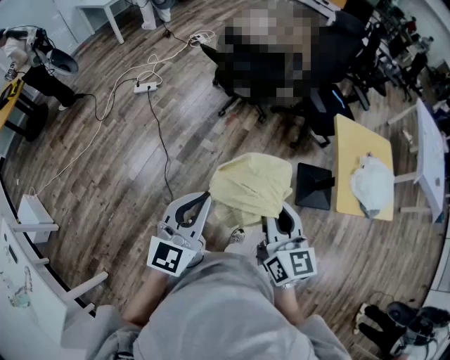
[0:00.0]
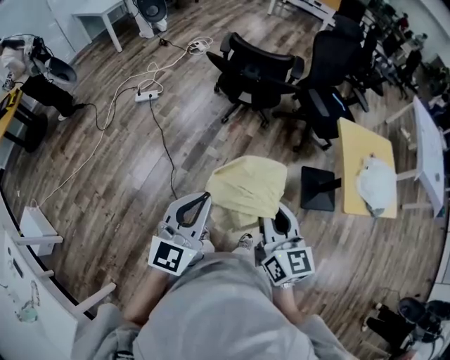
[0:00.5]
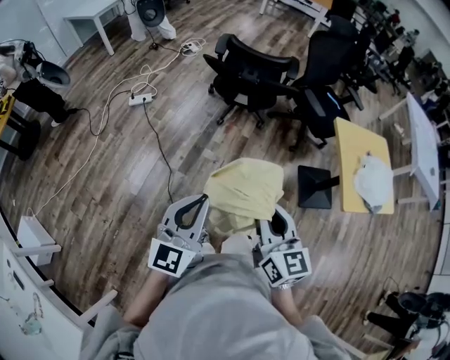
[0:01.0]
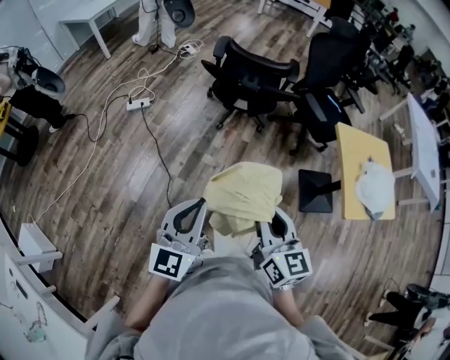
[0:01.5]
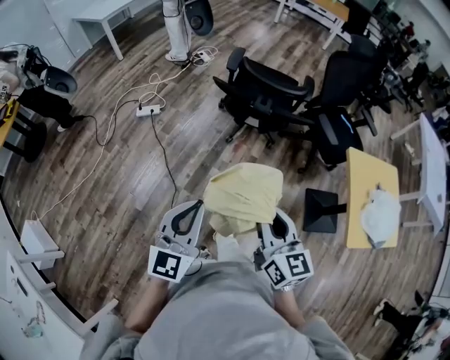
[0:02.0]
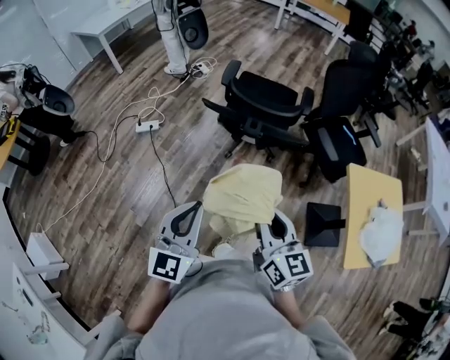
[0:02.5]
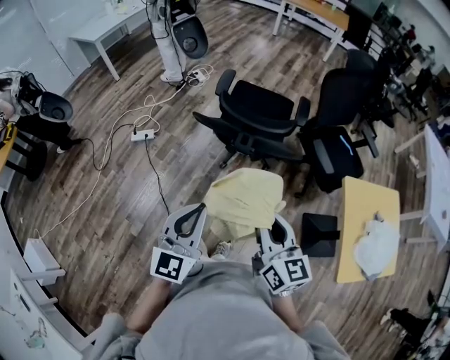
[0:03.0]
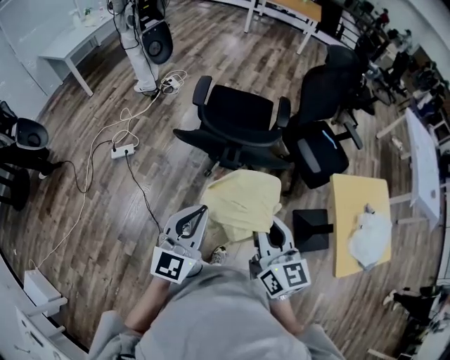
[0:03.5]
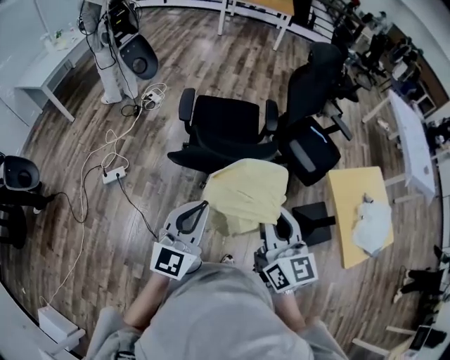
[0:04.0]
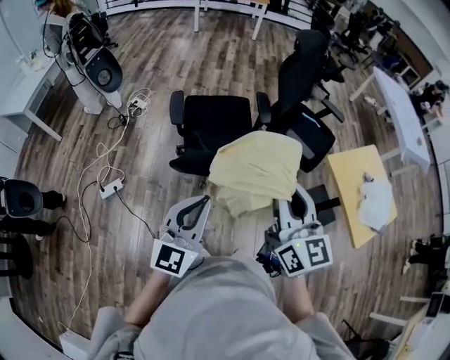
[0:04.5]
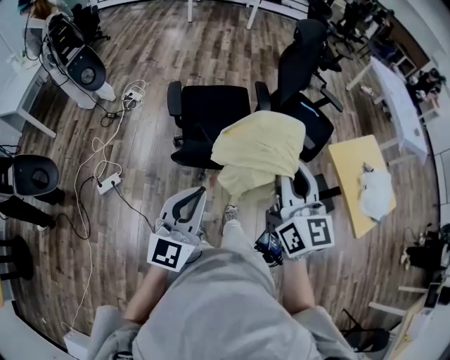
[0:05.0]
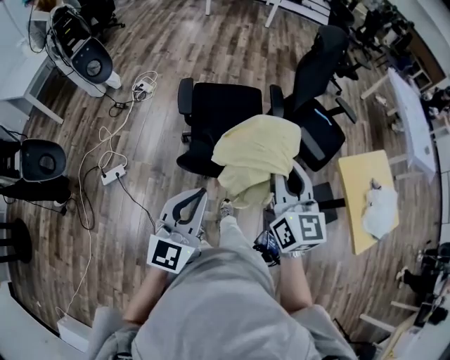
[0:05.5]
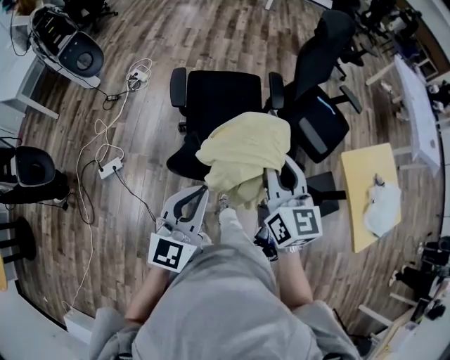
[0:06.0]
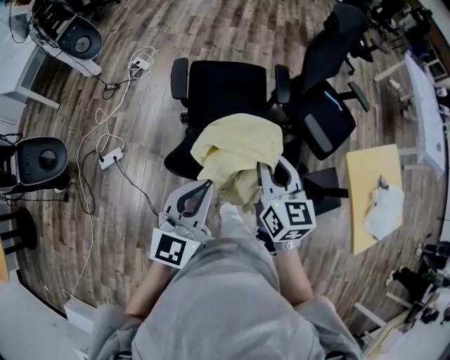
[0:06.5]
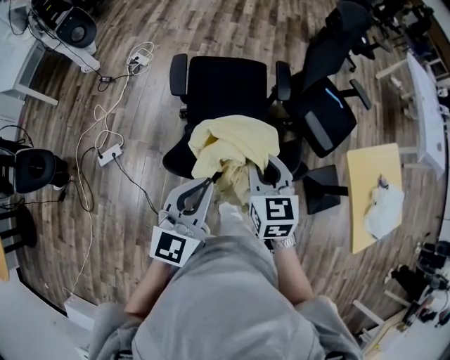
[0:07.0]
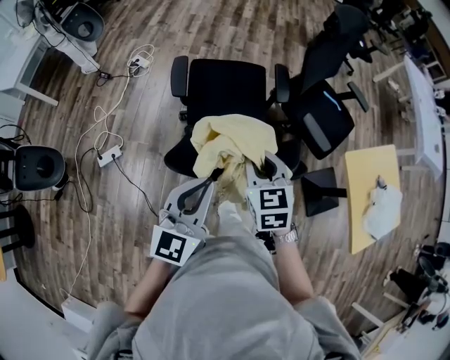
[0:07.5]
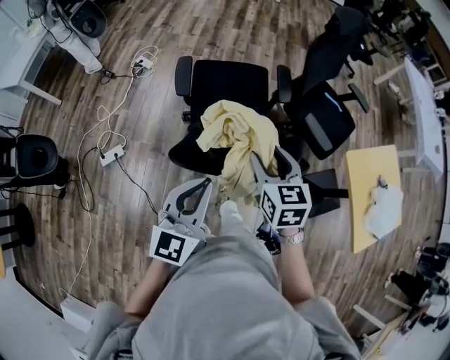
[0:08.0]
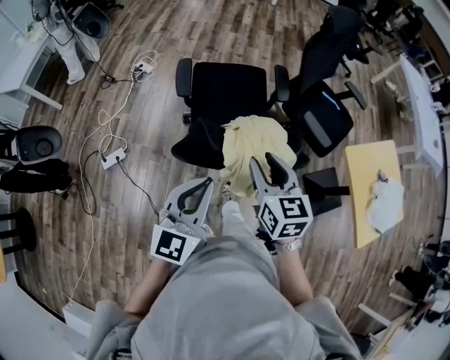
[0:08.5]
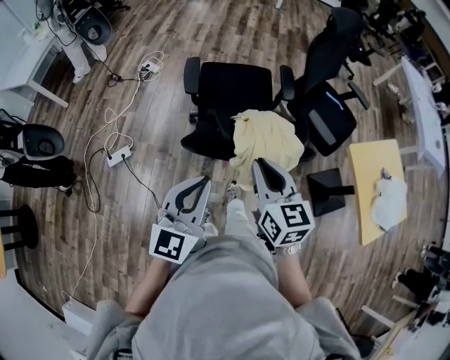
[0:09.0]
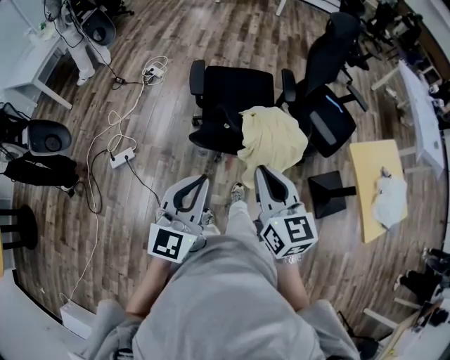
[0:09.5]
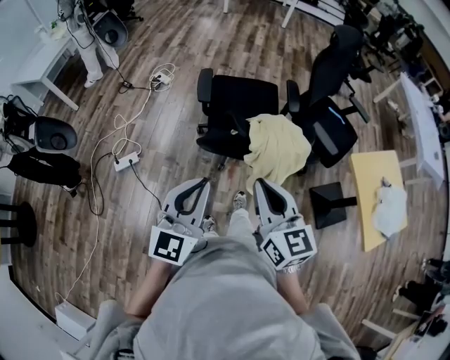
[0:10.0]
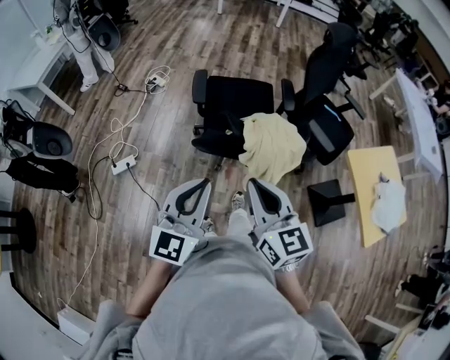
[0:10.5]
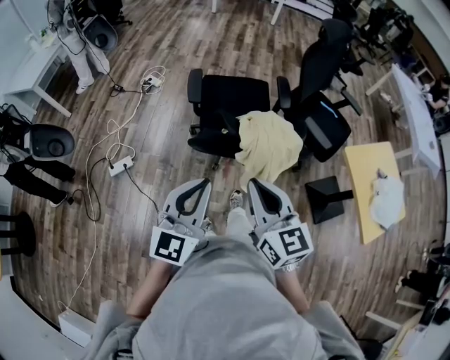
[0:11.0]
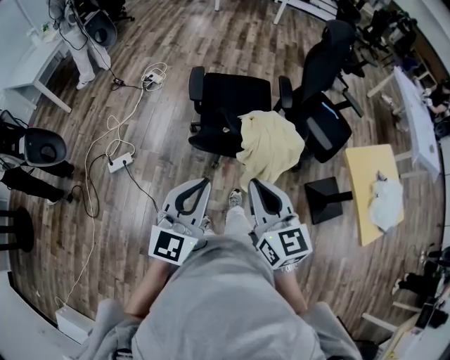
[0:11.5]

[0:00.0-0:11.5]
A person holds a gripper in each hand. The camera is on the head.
0:00.0 to 0:02.0: Both grippers travel together forward and to the left, about 20 cm.
0:02.0 to 0:04.0: Both grippers travel together forward, approximately 30 cm. The left gripper changes its angle by about 20 degrees.
0:04.0 to 0:06.0: The left gripper heads forward and to the left, covering roughly 15 cm, while the right gripper shifts about 20 cm forward.
0:06.0 to 0:07.5: The right gripper travels downward by approximately 10 cm, and changes its angle by about 30 degrees.
0:07.5 to 0:09.5: The right gripper is displaced backward and upward by roughly 20 cm, turns by approximately 20 degrees, and opens and closes again, while the left gripper shifts roughly 15 cm backward and to the left.
0:09.5 to 0:11.5: There are only small adjustments of the grippers.

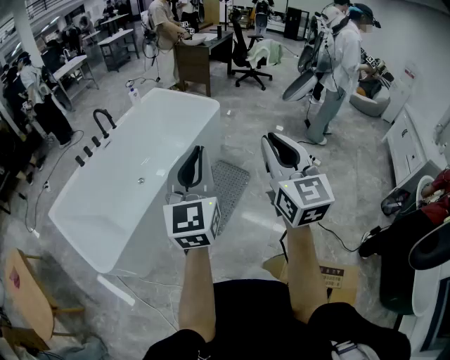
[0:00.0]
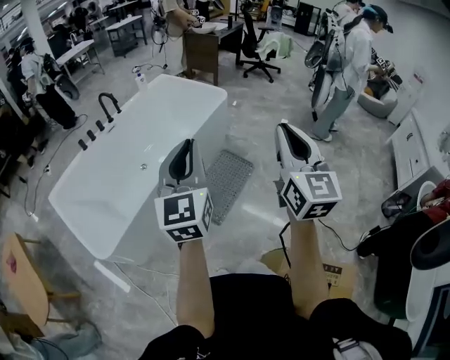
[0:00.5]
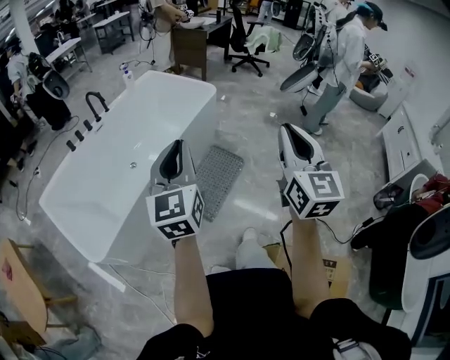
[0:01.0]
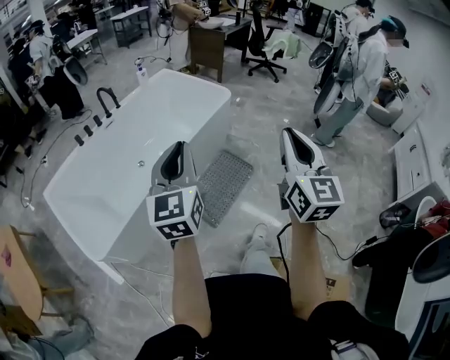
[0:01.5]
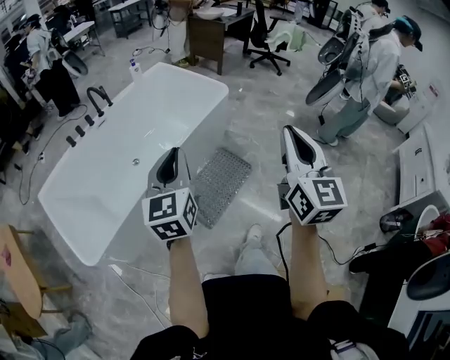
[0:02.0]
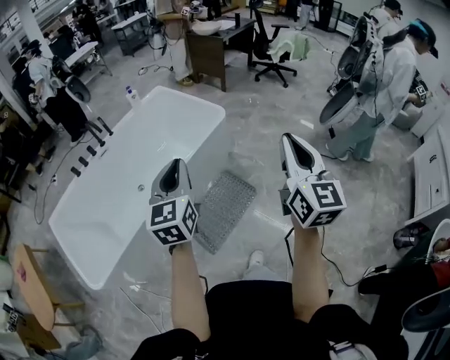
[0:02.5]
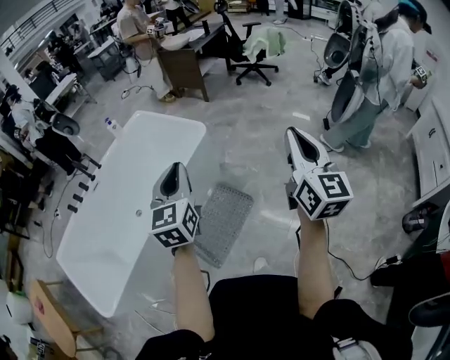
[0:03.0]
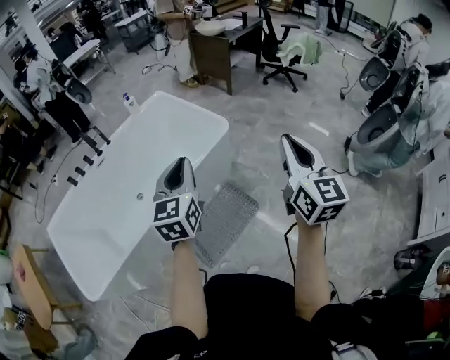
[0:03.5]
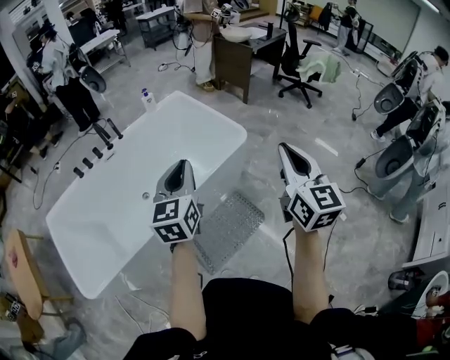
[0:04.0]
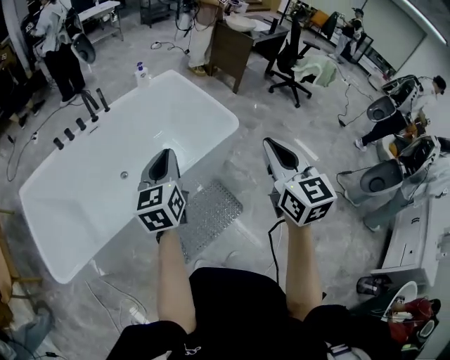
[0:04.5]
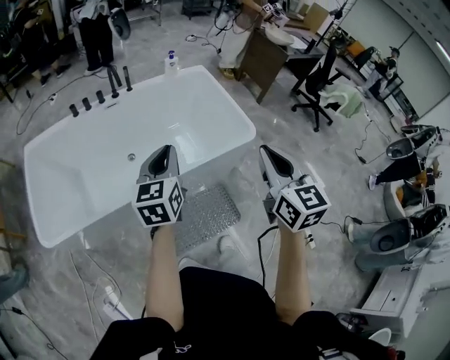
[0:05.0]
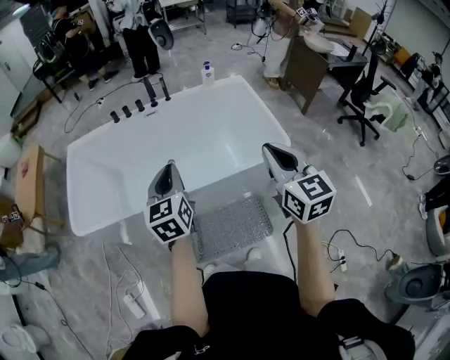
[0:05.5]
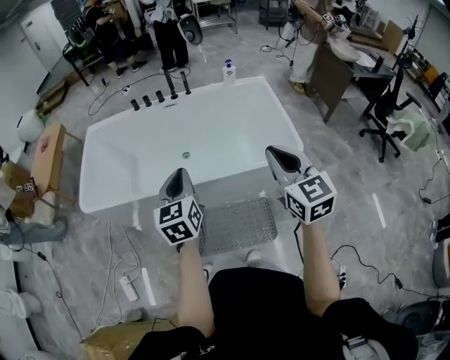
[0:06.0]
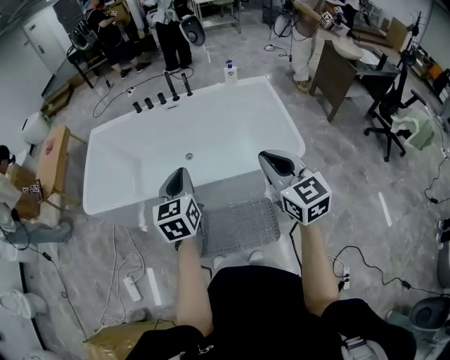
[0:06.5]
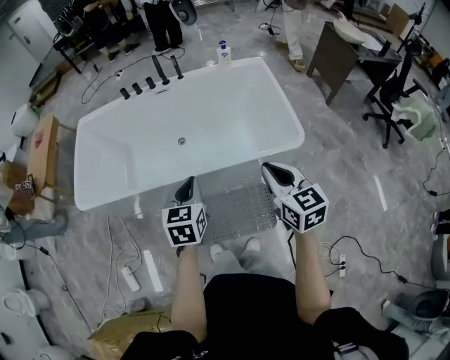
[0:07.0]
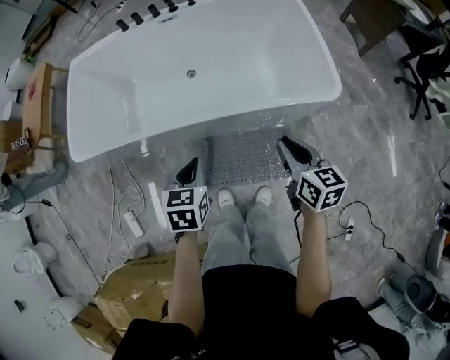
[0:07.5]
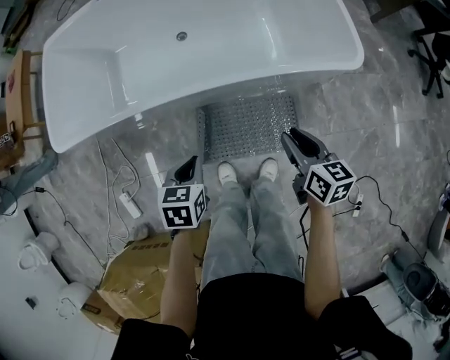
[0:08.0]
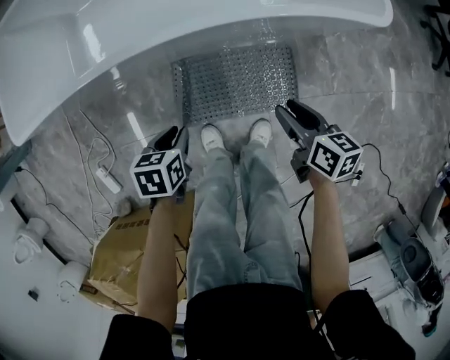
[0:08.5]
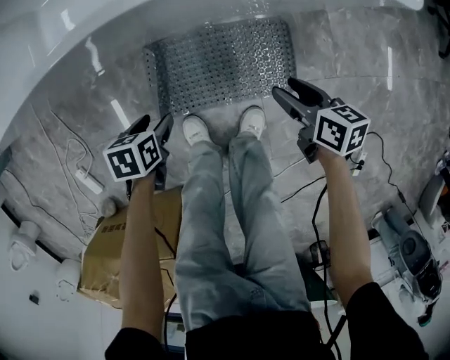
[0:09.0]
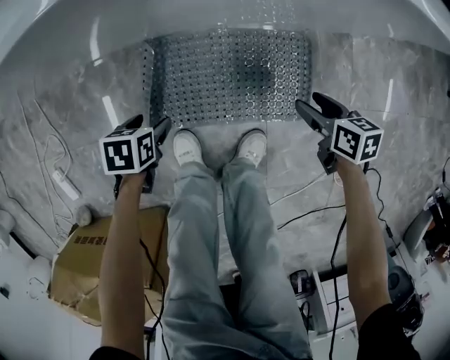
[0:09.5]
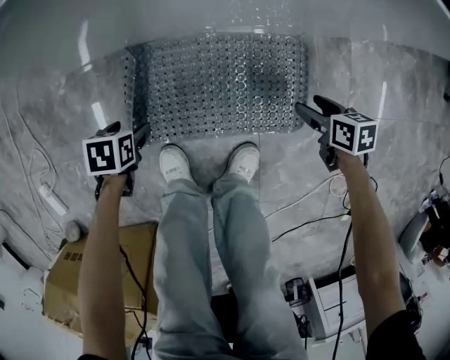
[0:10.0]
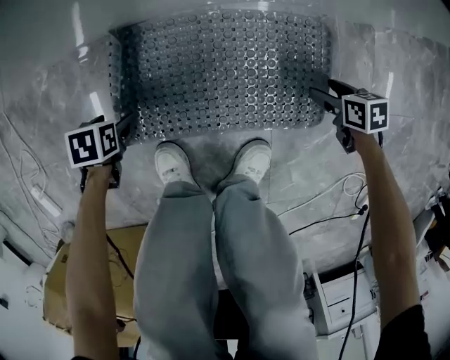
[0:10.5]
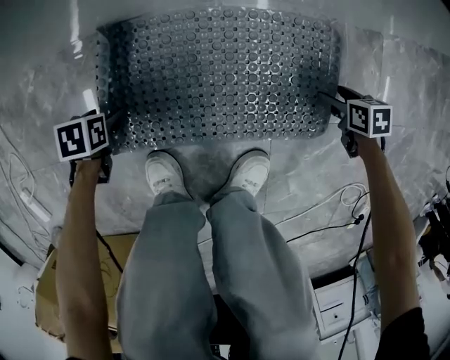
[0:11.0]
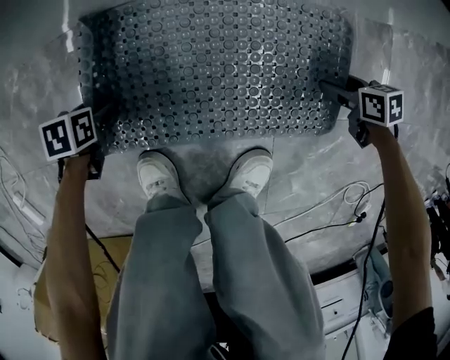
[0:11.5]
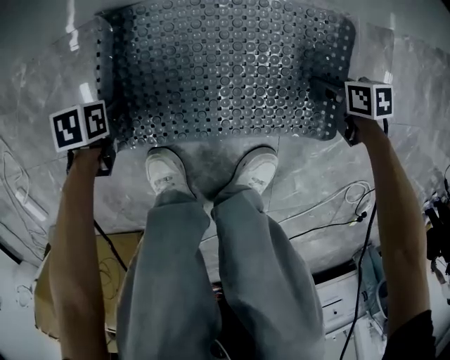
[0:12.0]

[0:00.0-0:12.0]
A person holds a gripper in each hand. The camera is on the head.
0:00.0 to 0:02.0: The left gripper heads forward and downward, covering about 20 cm, while the right gripper goes roughly 15 cm forward.
0:02.0 to 0:04.0: Both grippers move forward, approximately 30 cm.
0:04.0 to 0:06.0: The left gripper is displaced downward by about 5 cm, and changes its angle by some 40 degrees. The right gripper shifts by approximately 15 cm, and turns by approximately 50 degrees.
0:06.0 to 0:08.0: The two grippers go roughly 35 cm downward. The left gripper tilts its fingers roughly 40 degrees downward; the right gripper swivels approximately 40 degrees.
0:08.0 to 0:10.0: The two grippers go approximately 50 cm downward. The left gripper swivels approximately 30 degrees, and opens up; the right gripper changes its angle by roughly 30 degrees, and opens its fingers.
0:10.0 to 0:12.0: Both grippers travel together downward, roughly 15 cm. The left gripper closes its fingers.

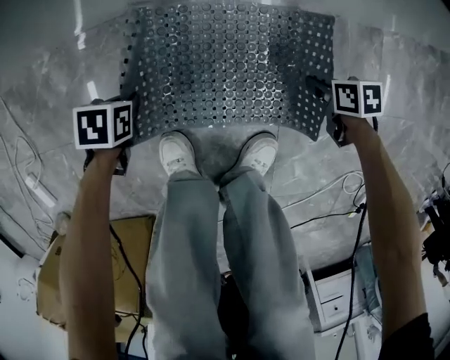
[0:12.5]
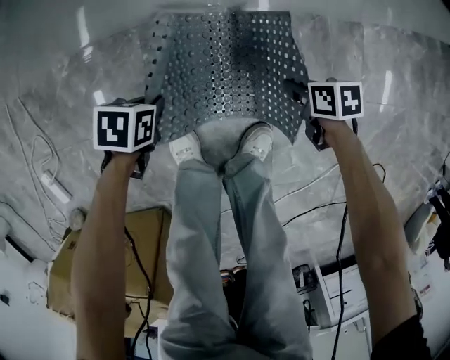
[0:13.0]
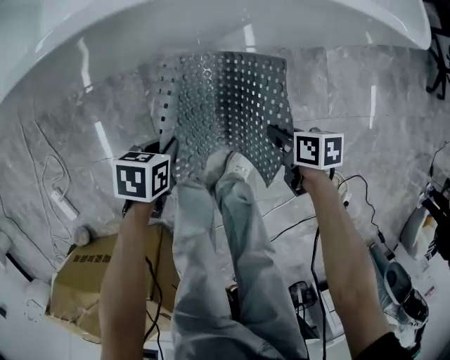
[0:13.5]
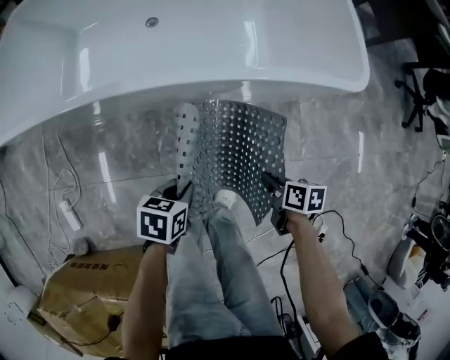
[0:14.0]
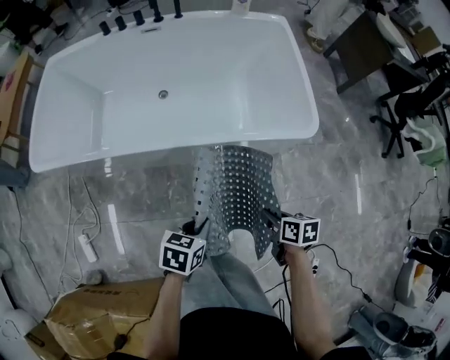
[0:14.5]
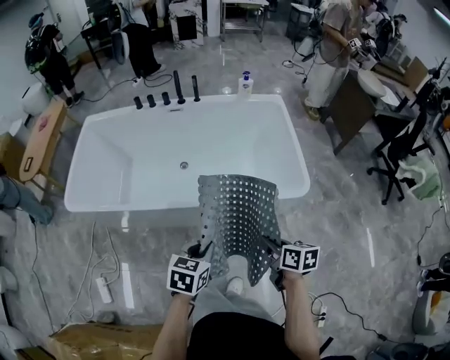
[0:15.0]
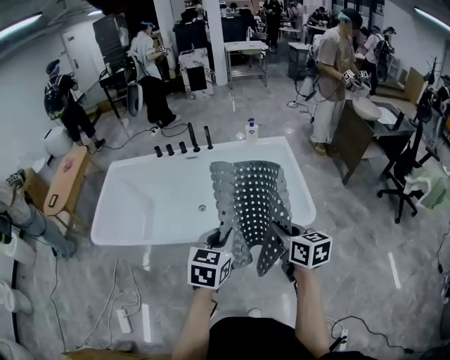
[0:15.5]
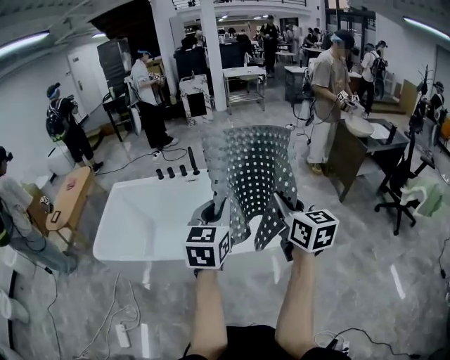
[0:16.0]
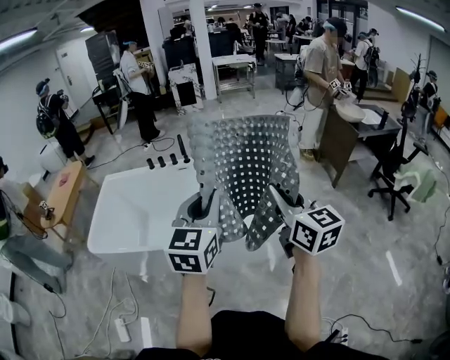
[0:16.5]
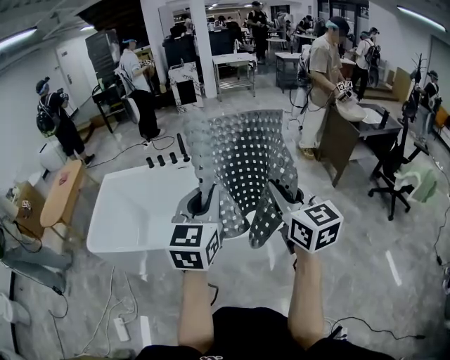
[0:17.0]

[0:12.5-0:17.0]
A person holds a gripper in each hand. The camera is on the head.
0:12.5 to 0:14.5: The grippers both shift upward by about 60 cm. The right gripper turns by roughly 30 degrees; the left gripper changes its angle by roughly 30 degrees.
0:14.5 to 0:17.0: Both grippers move upward, some 50 cm. The left gripper tips its fingers upward by some 50 degrees. The right gripper angles its fingers upward, by some 50 degrees.
